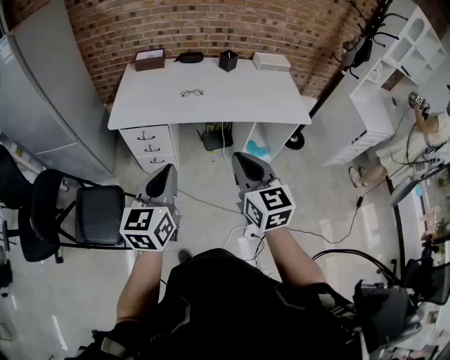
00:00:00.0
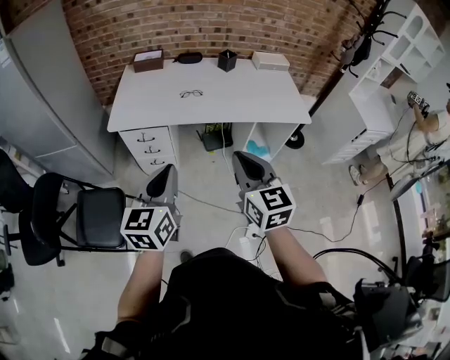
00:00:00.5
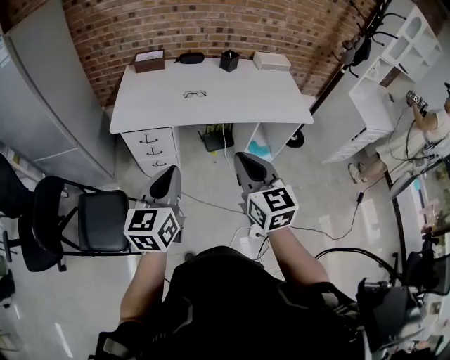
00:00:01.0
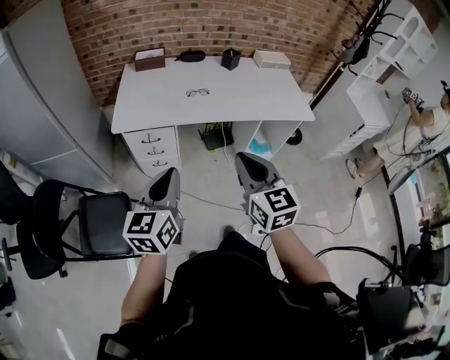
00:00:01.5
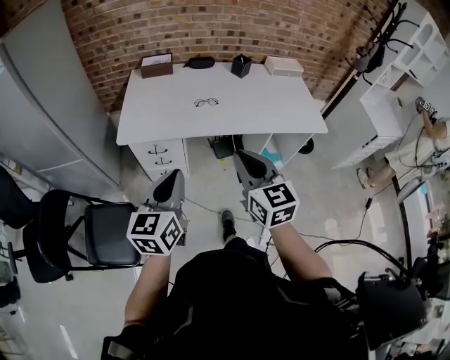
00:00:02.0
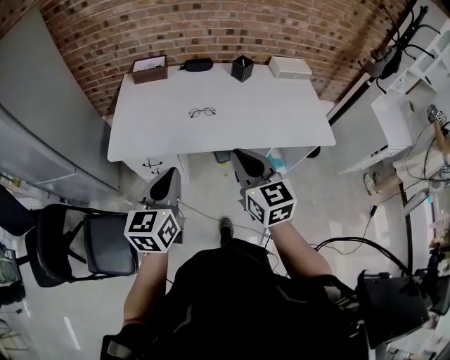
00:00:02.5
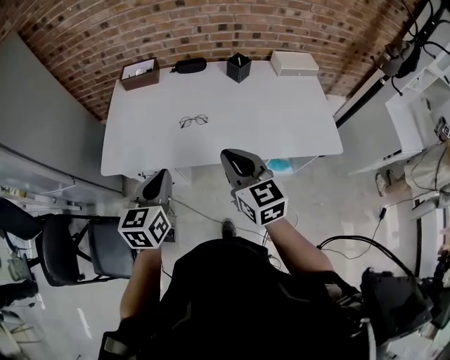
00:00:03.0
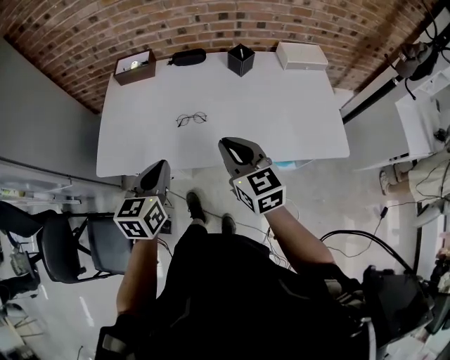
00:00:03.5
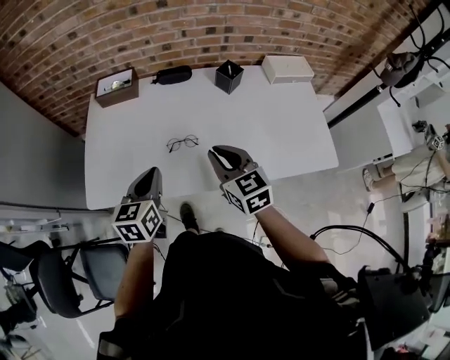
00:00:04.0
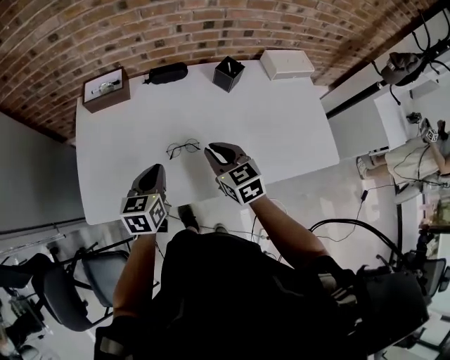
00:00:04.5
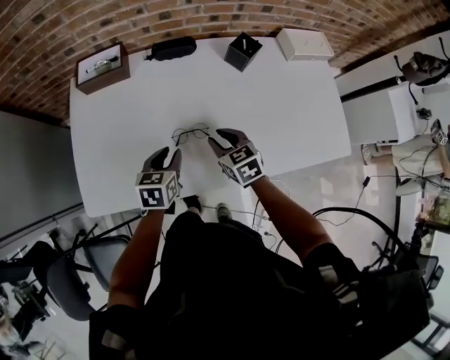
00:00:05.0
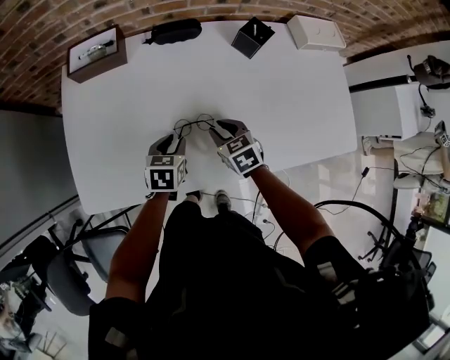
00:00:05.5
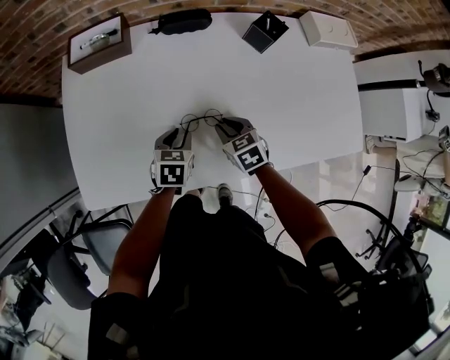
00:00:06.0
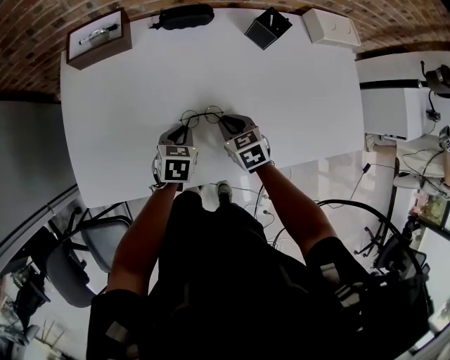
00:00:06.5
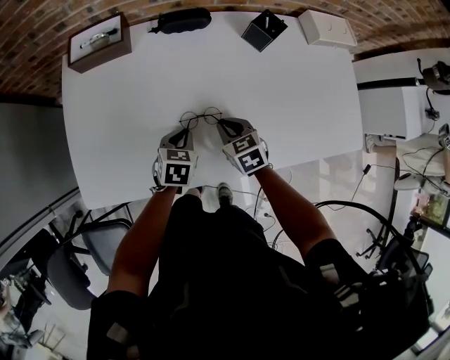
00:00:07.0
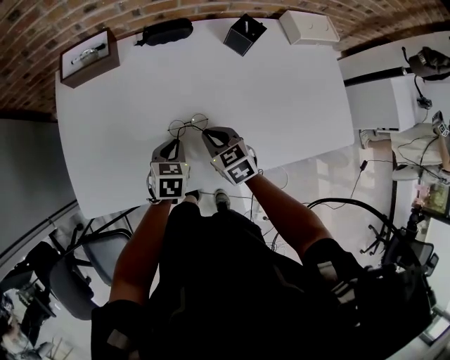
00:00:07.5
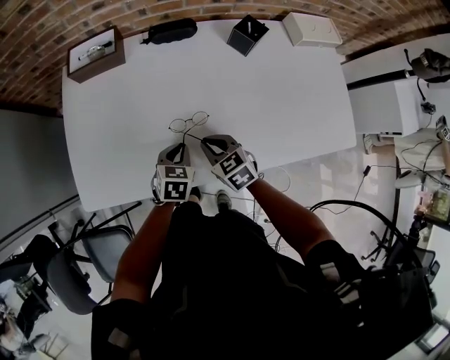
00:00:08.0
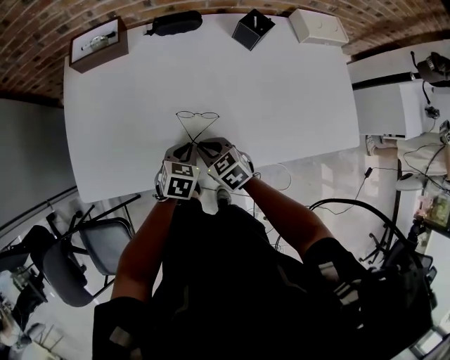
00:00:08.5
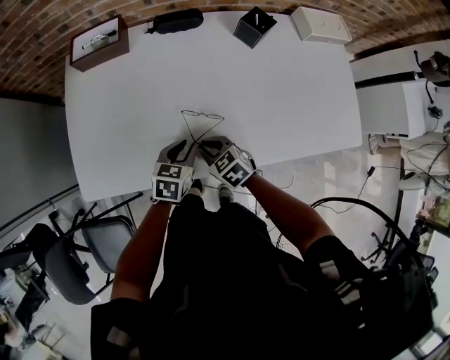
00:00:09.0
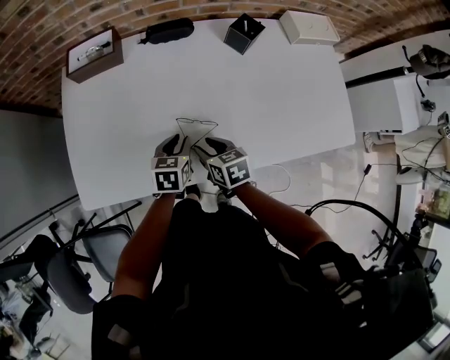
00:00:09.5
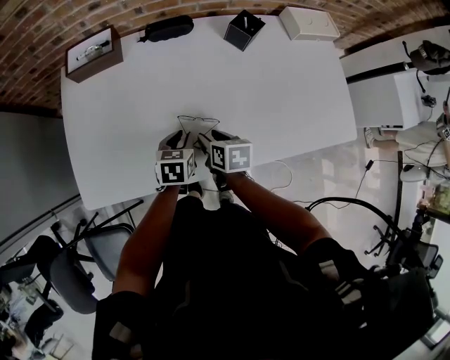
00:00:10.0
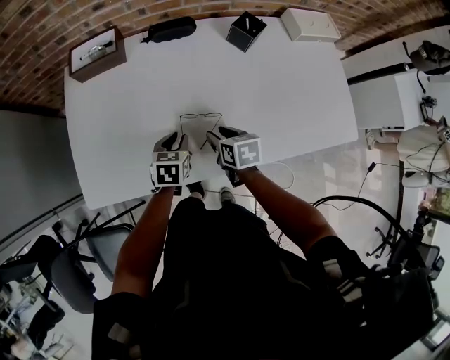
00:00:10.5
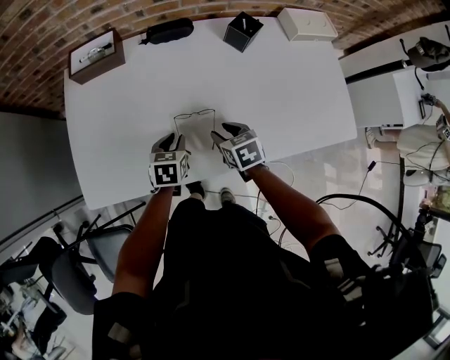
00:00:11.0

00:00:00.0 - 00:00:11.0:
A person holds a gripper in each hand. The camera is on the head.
00:00:00.0 - 00:00:02.0: Both grippers travel together forward and to the left, approximately 15 cm.
00:00:02.0 - 00:00:03.5: Both grippers move forward and to the right, some 30 cm.
00:00:03.5 - 00:00:05.5: The grippers both shift downward and forward by roughly 35 cm. The left gripper turns by some 30 degrees, and opens up, while the right gripper angles its fingers downward, by some 30 degrees.
00:00:05.5 - 00:00:07.5: The left gripper closes.
00:00:07.5 - 00:00:09.0: The two grippers go roughly 5 cm backward.
00:00:09.0 - 00:00:11.0: The right gripper heads to the right, covering roughly 10 cm, turns by some 30 degrees, and opens, while the left gripper moves about 5 cm.

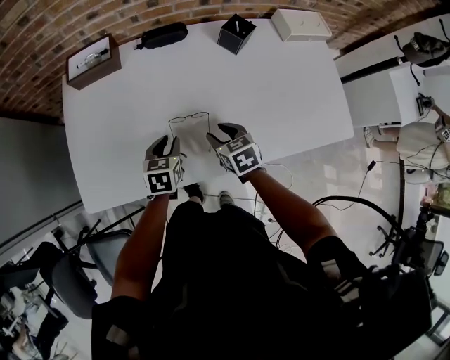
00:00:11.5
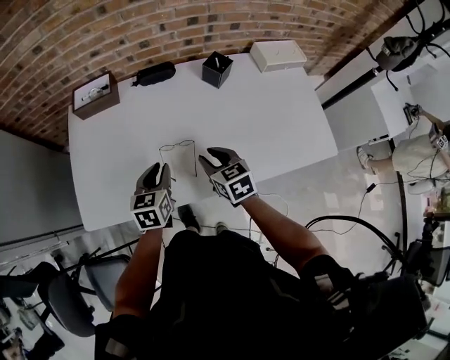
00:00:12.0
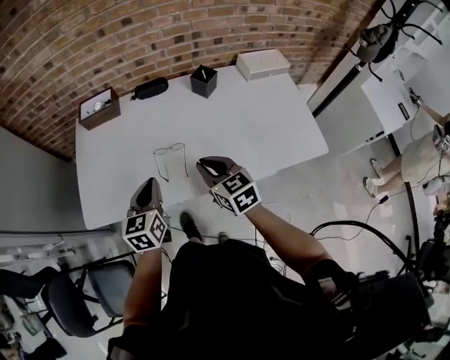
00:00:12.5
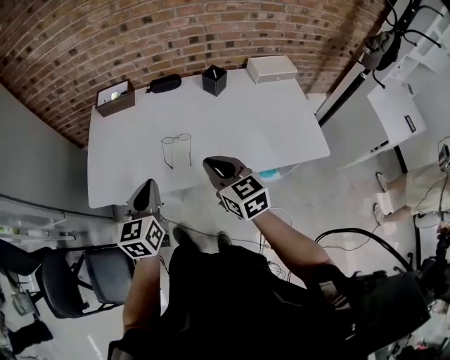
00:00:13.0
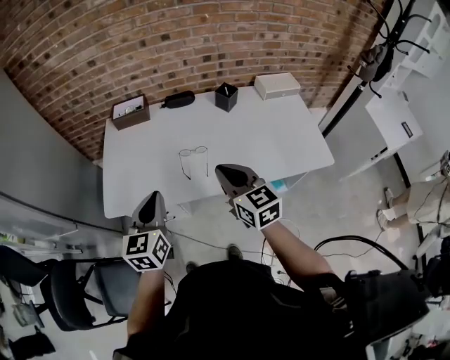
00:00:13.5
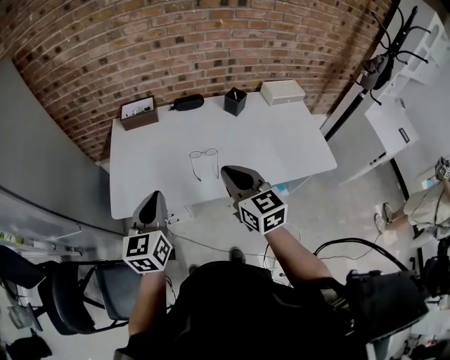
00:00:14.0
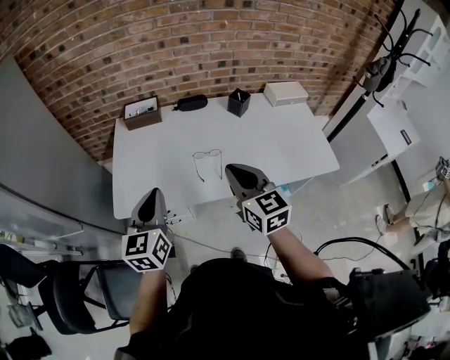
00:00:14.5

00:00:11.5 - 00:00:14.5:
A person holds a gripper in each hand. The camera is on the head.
00:00:11.5 - 00:00:13.0: The two grippers go approximately 30 cm upward and backward. The right gripper turns by approximately 30 degrees, and closes. Meanwhile the left gripper turns by some 30 degrees, and closes.
00:00:13.0 - 00:00:14.5: Both grippers travel together to the left and upward, approximately 15 cm.

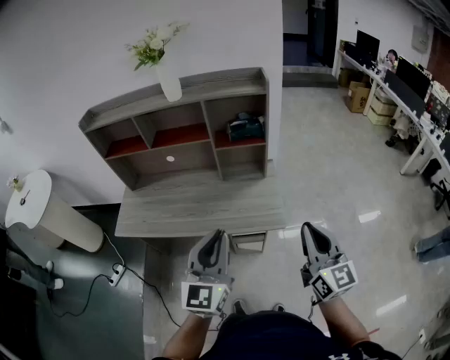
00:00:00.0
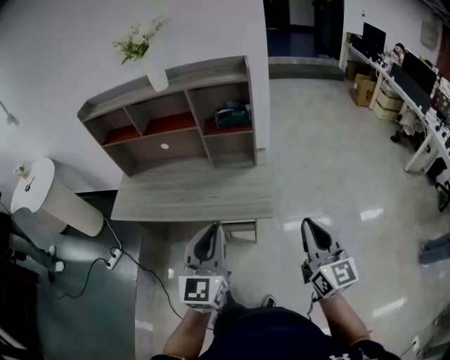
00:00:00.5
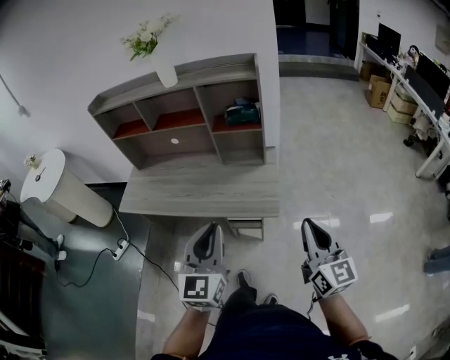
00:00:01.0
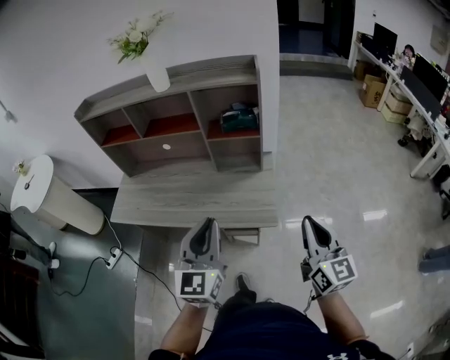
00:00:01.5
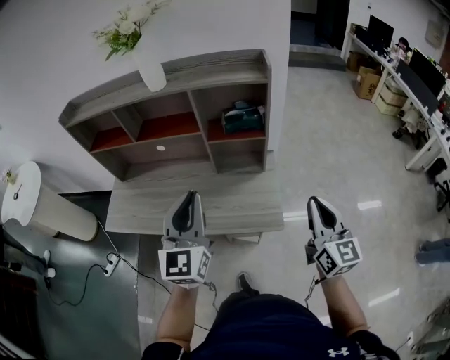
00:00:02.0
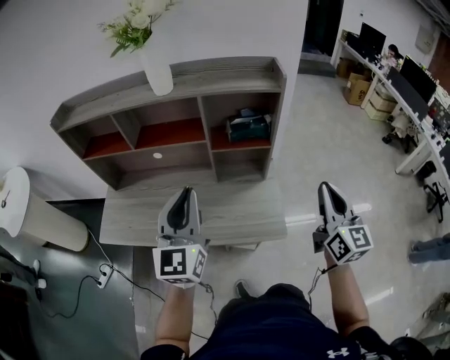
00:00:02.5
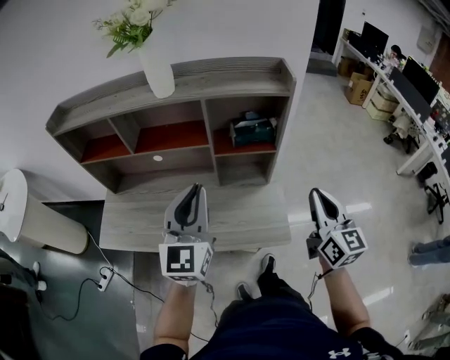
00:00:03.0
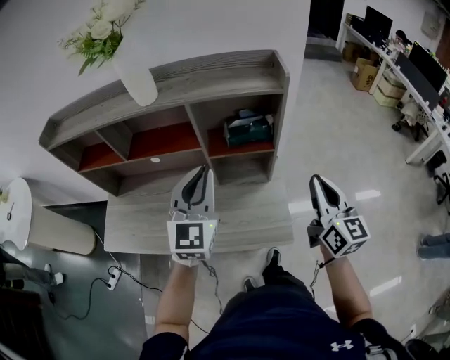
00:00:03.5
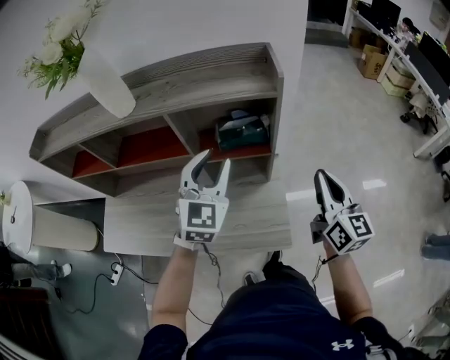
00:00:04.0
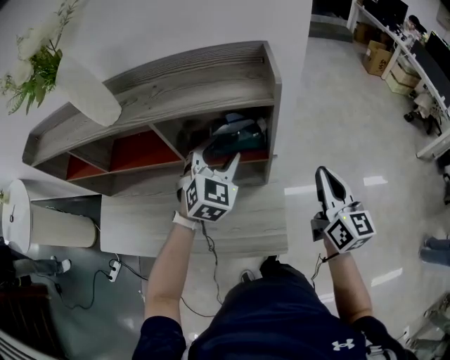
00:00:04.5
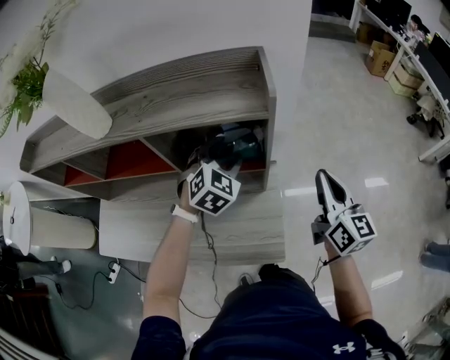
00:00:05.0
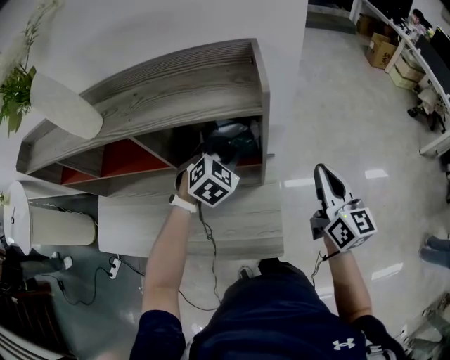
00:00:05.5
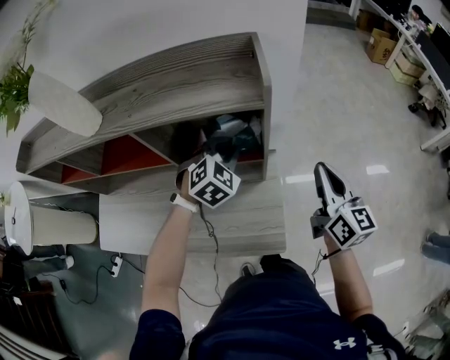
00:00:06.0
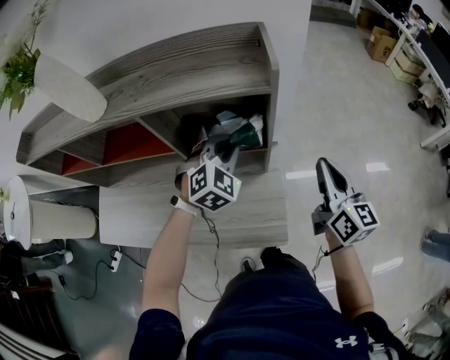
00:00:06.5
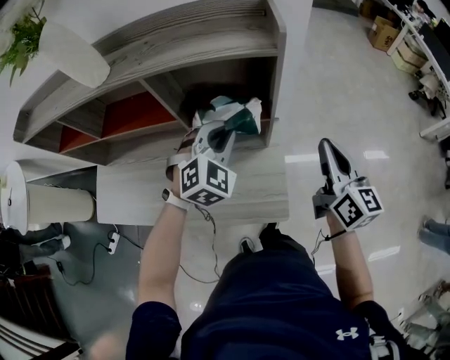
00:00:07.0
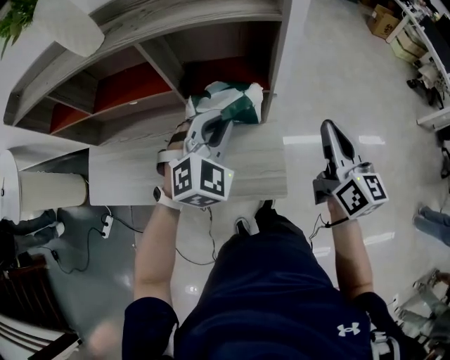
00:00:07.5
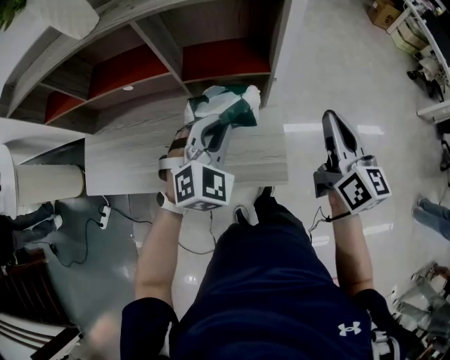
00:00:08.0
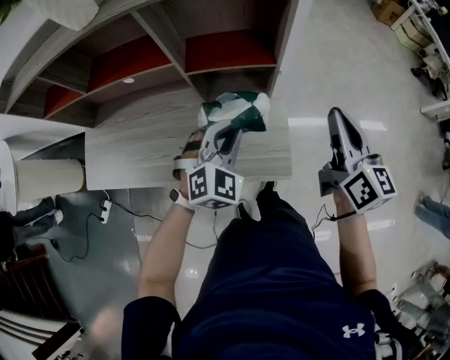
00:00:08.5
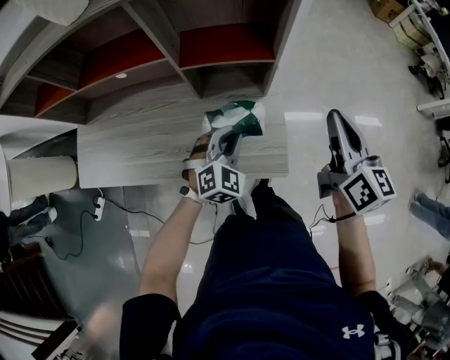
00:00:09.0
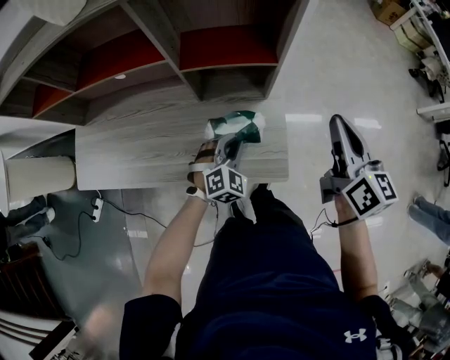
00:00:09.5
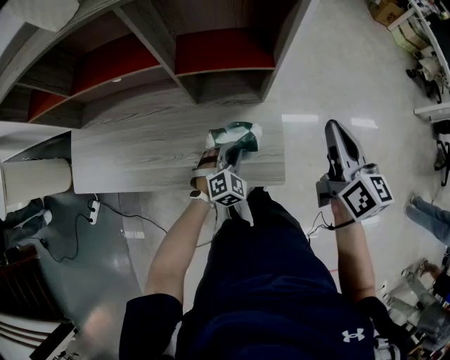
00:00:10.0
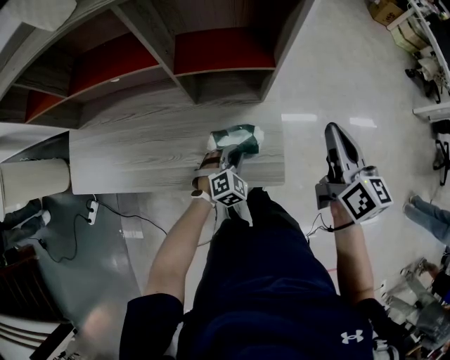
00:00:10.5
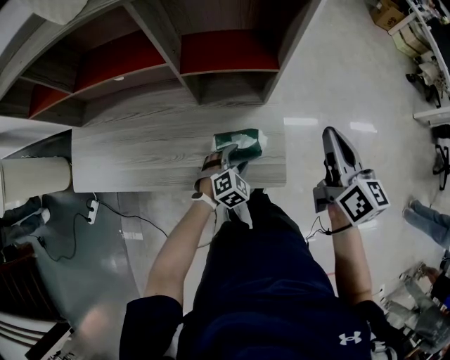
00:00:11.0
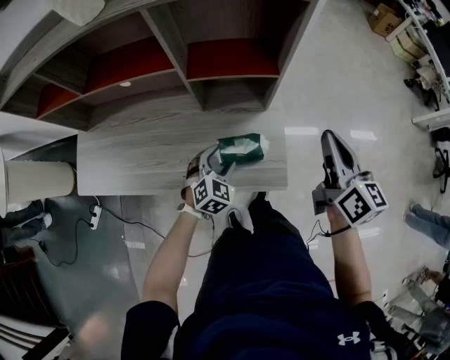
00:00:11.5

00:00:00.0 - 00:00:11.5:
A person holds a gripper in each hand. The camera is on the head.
00:00:00.0 - 00:00:02.0: The left gripper shifts approximately 15 cm forward; the right gripper travels forward and to the right by roughly 15 cm.
00:00:02.0 - 00:00:04.0: The two grippers go about 25 cm forward. The left gripper rotates some 30 degrees, and opens its fingers.
00:00:04.0 - 00:00:06.0: The right gripper moves forward, some 10 cm, while the left gripper shifts about 20 cm downward, forward and to the right, tips its fingers downward by roughly 30 degrees, and opens, then closes again.
00:00:06.0 - 00:00:07.5: The left gripper moves backward, approximately 15 cm; the right gripper goes some 10 cm backward.
00:00:07.5 - 00:00:09.5: The left gripper shifts roughly 25 cm downward.
00:00:09.5 - 00:00:11.5: The left gripper goes downward and returns, some 10 cm each way, and opens up.

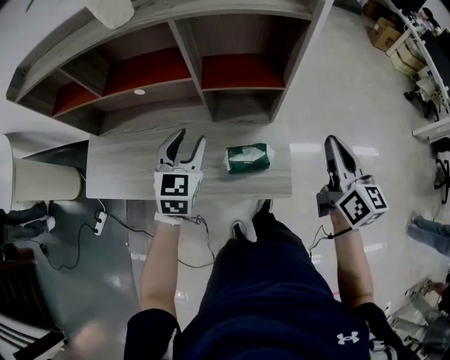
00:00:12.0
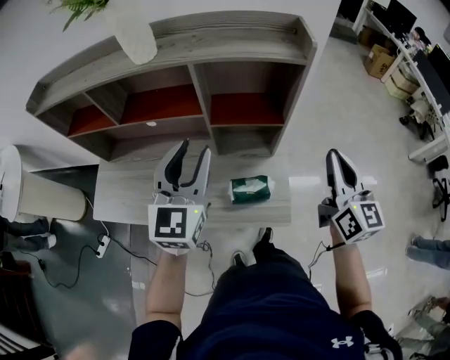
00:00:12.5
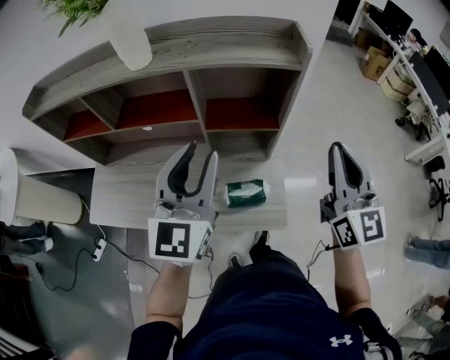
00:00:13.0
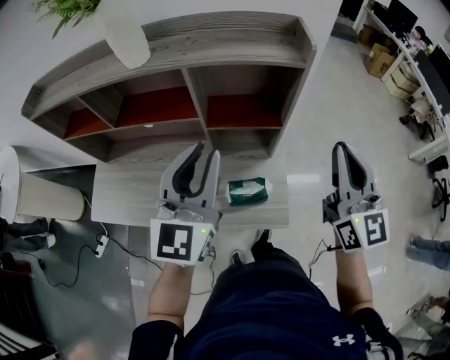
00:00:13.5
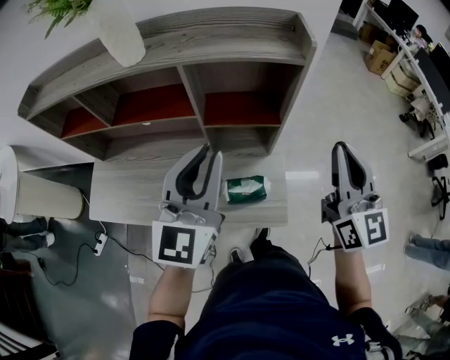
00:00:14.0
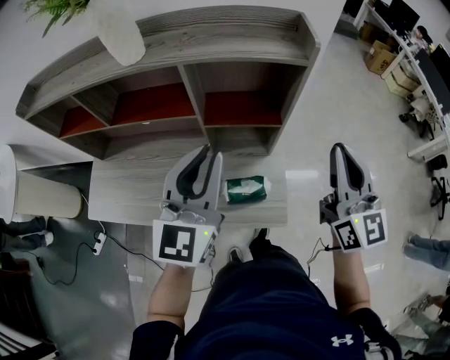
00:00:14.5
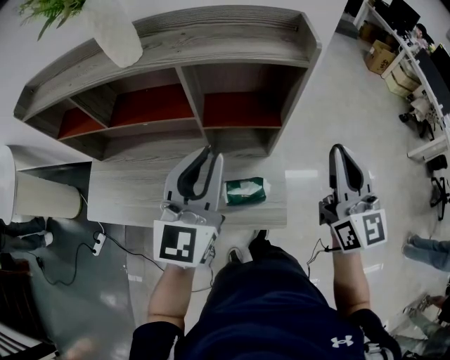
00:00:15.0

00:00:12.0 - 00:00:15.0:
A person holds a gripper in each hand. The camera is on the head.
00:00:12.0 - 00:00:13.5: Both grippers move upward, some 15 cm. The left gripper swivels some 30 degrees, and closes up, while the right gripper swivels about 30 degrees.
00:00:13.5 - 00:00:15.0: The grippers make only small movements.
